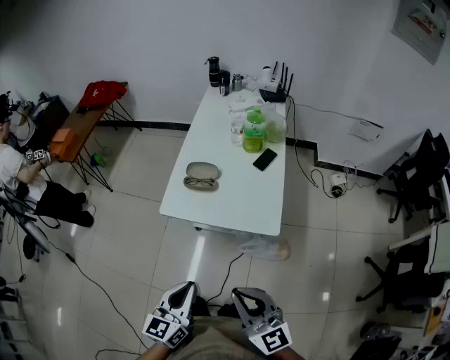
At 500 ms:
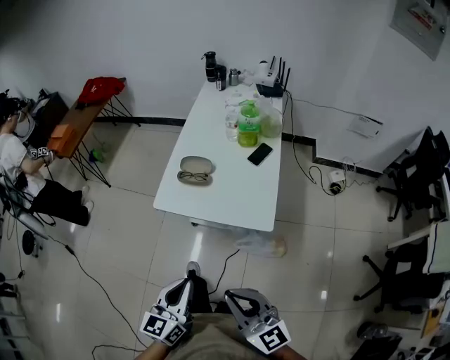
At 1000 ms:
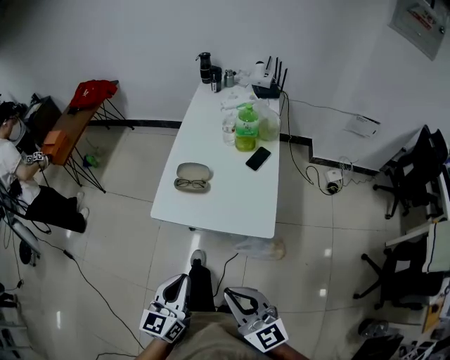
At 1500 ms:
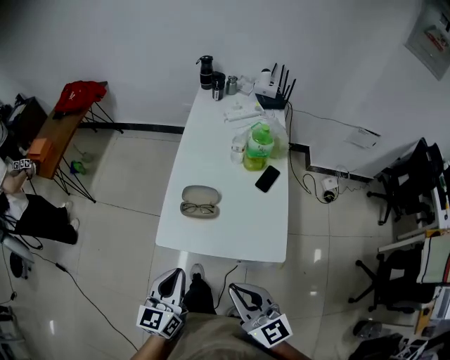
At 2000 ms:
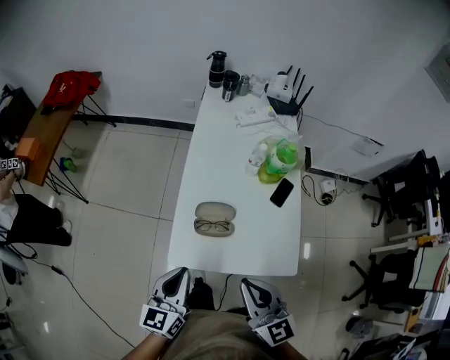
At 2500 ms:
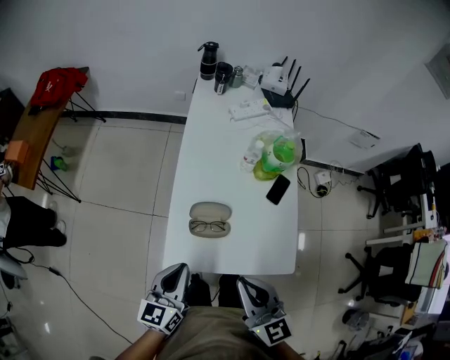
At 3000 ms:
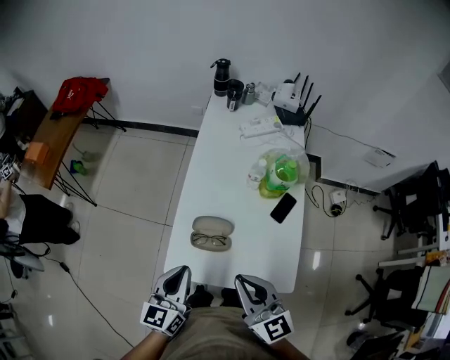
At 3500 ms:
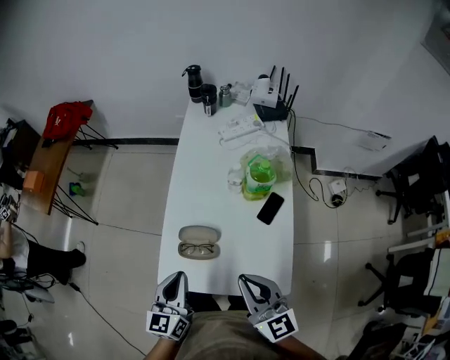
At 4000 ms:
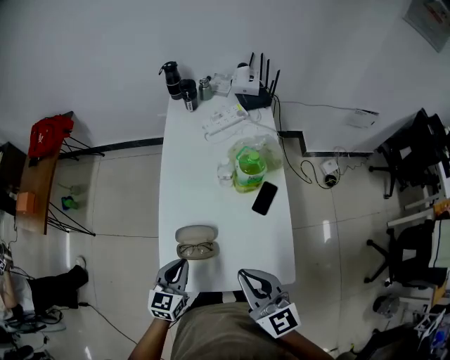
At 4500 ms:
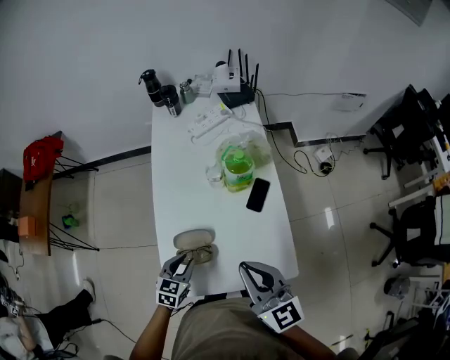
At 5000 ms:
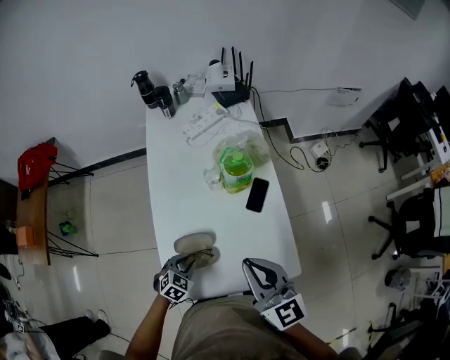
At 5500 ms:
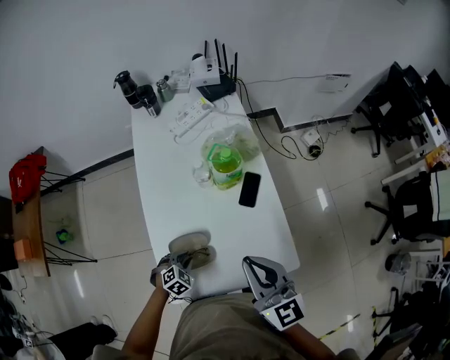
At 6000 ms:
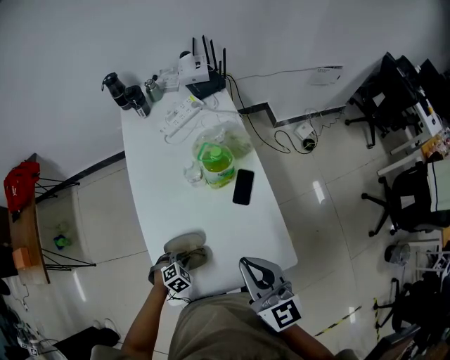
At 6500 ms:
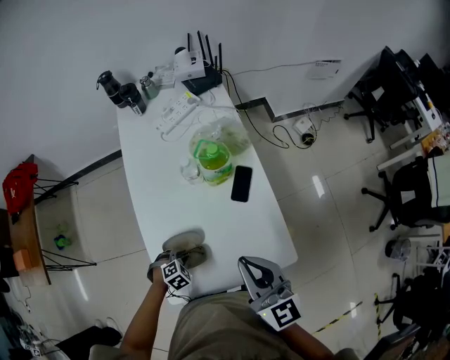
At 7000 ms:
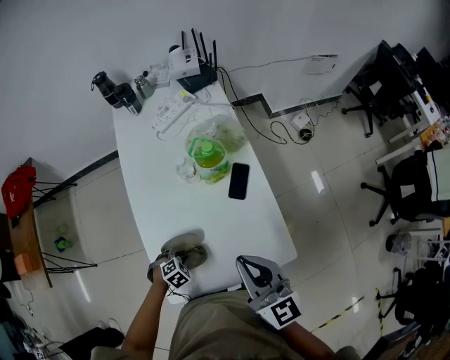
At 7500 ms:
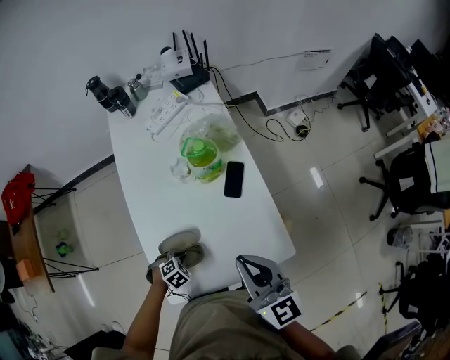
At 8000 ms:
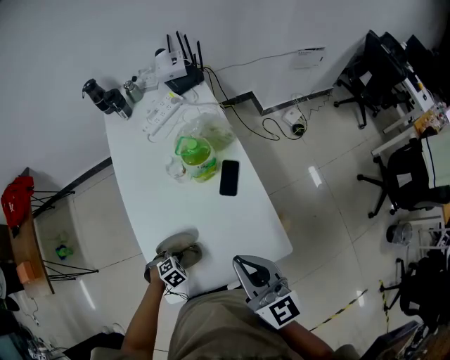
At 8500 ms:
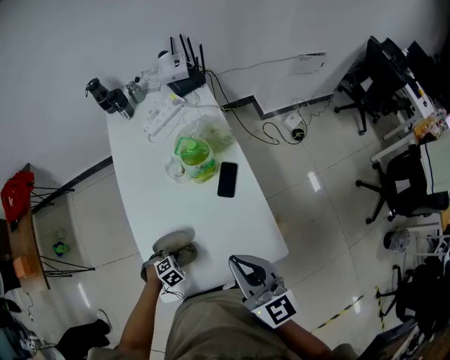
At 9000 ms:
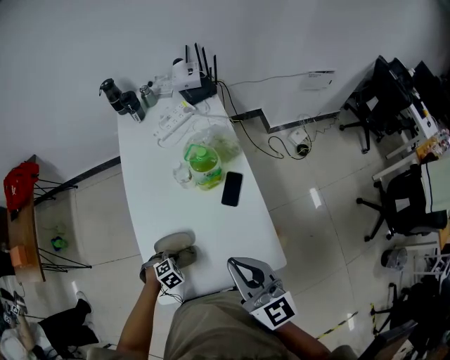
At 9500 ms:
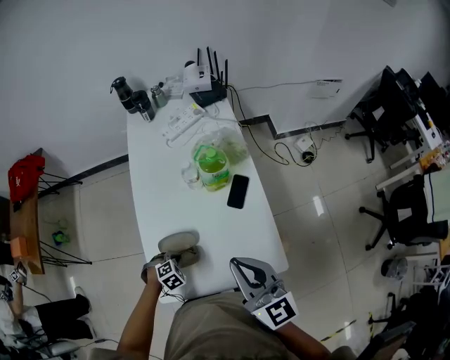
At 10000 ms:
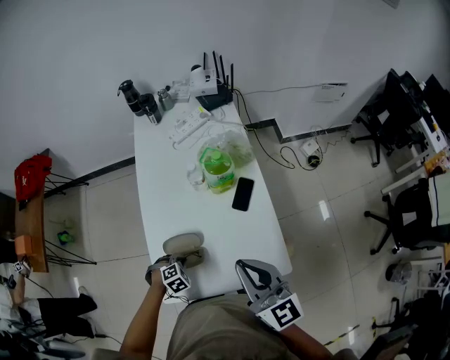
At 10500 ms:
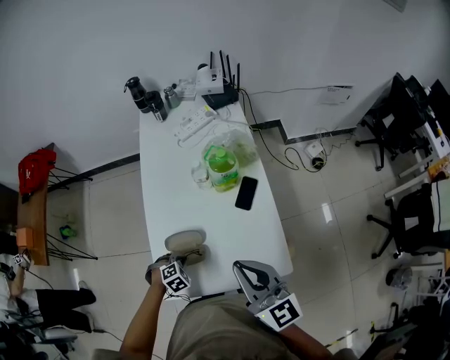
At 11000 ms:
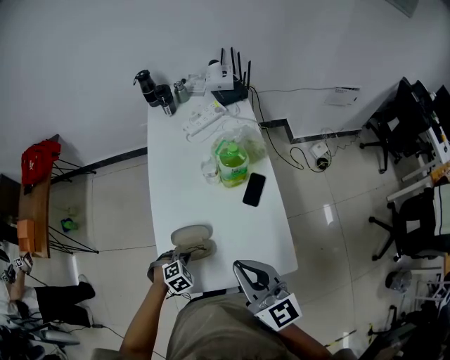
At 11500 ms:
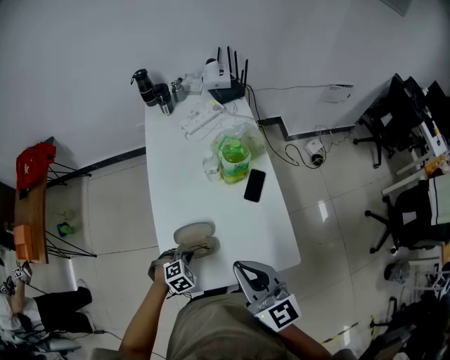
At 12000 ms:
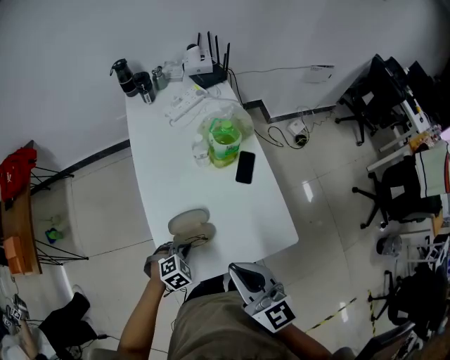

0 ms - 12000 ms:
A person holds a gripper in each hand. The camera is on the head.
0 ms - 2000 ms: Both grippers move forward, about 35 cm.
2000 ms - 4000 ms: The left gripper is displaced forward, to the right and downward by approximately 15 cm, and turns by about 20 degrees, while the right gripper travels to the right and forward by some 15 cm.
4000 ms - 6000 ms: The right gripper shifts by roughly 5 cm, while the left gripper shifts roughly 20 cm downward, angles its fingers downward, by about 50 degrees, and opens up.
6000 ms - 10000 ms: The grippers stay close to where they were, moving slightly.
10000 ms - 12000 ms: The right gripper shifts by some 10 cm, while the left gripper travels upward by some 5 cm.

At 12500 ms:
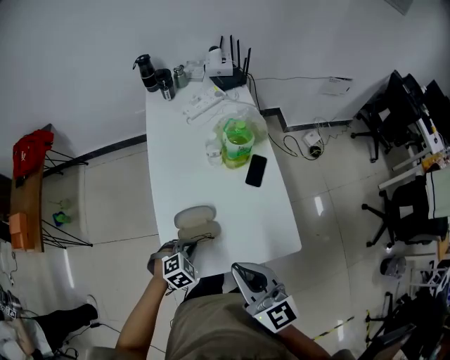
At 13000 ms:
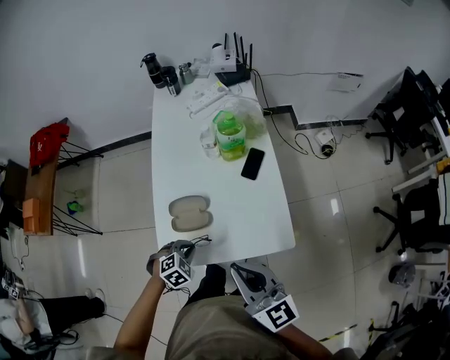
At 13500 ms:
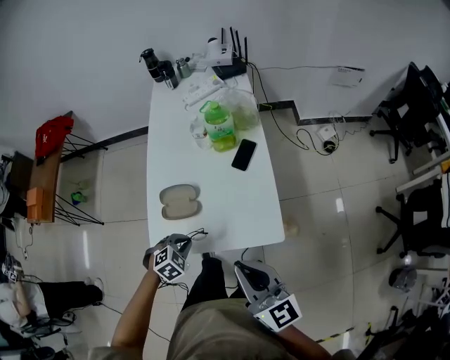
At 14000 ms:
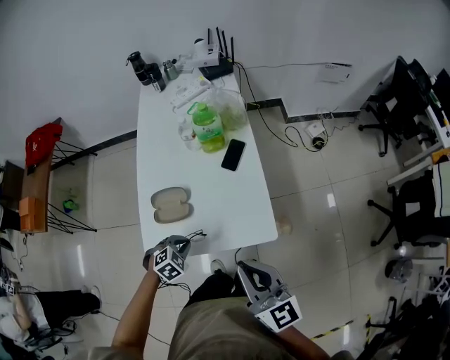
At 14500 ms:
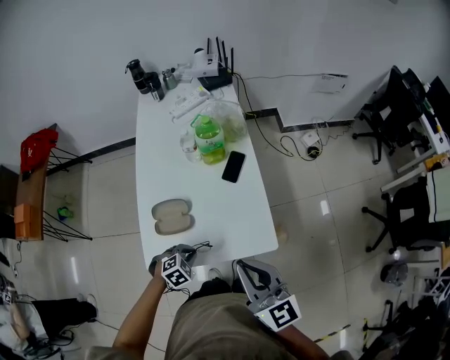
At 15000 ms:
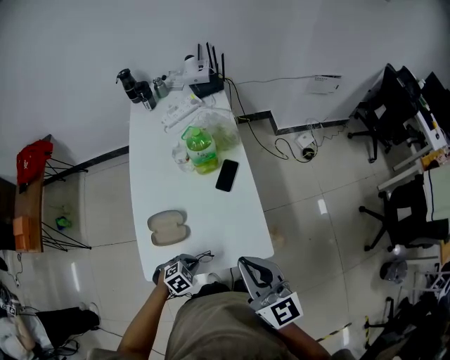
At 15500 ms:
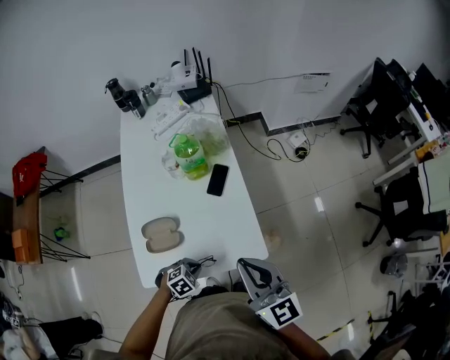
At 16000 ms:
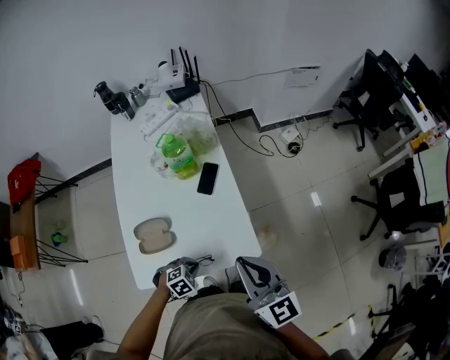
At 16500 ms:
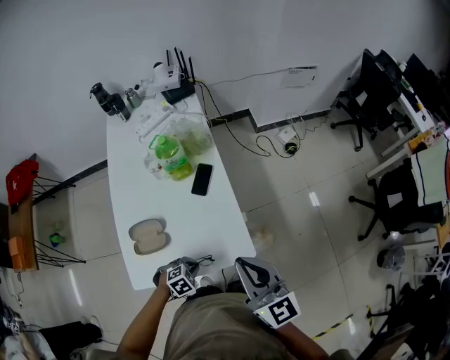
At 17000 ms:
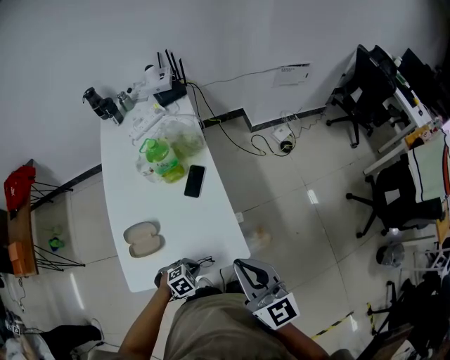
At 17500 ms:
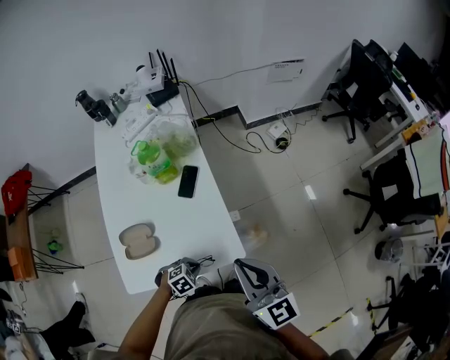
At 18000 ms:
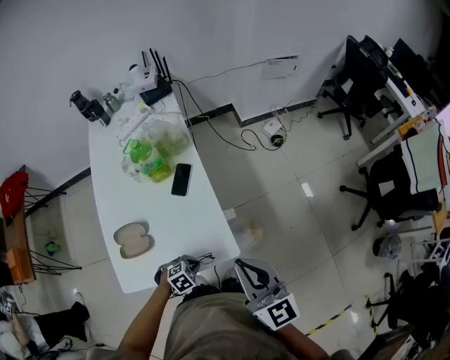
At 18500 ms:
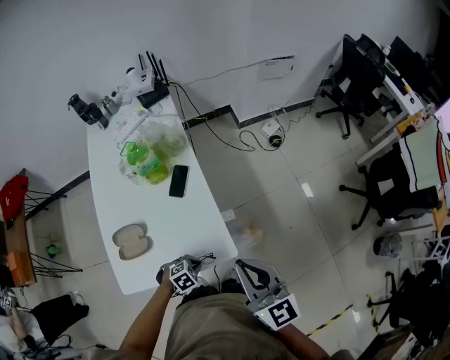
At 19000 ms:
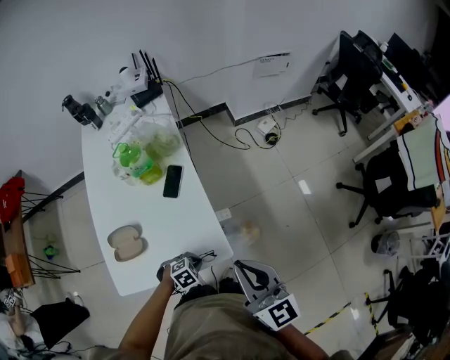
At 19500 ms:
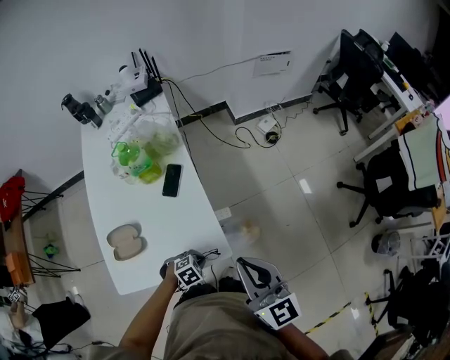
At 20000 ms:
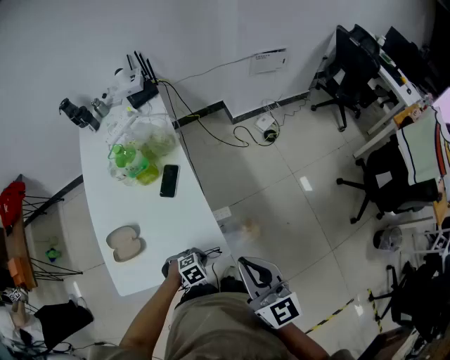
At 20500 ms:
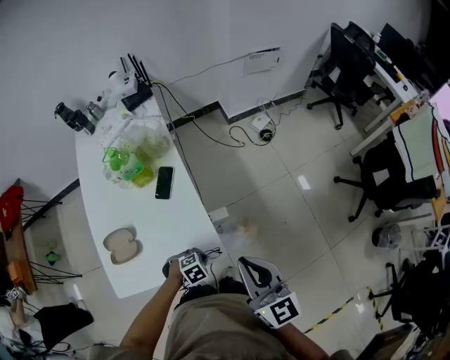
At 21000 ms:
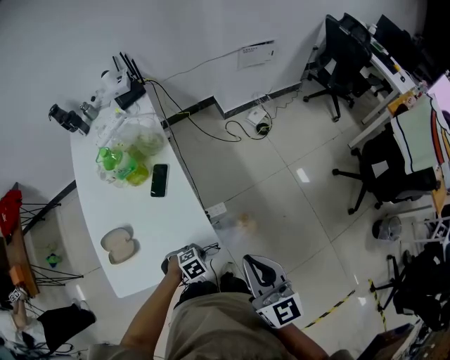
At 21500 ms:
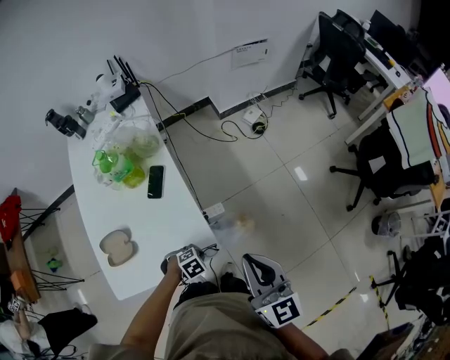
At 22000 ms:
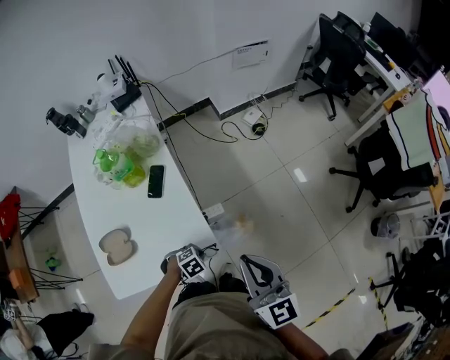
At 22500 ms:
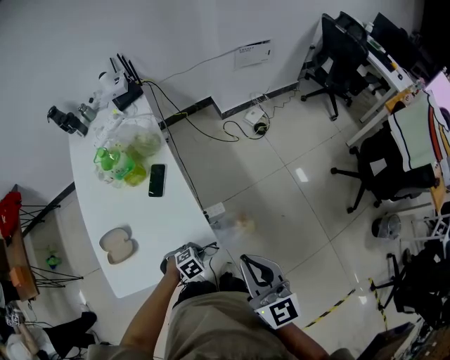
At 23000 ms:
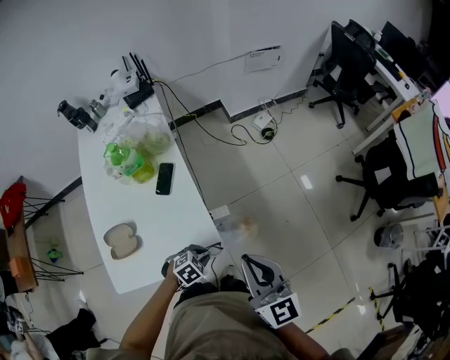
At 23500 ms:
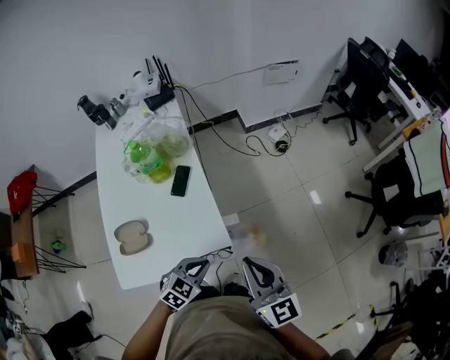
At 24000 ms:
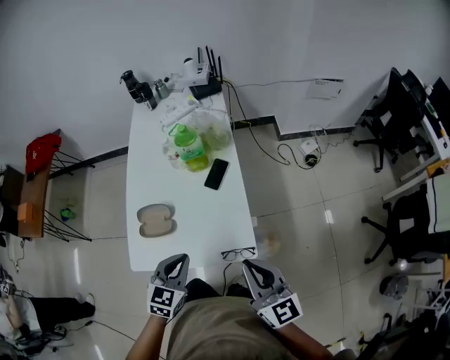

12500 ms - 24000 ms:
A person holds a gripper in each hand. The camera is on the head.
12500 ms - 14500 ms: The left gripper goes roughly 15 cm to the right and backward. Meanwhile the right gripper moves to the right, roughly 15 cm.
14500 ms - 16500 ms: The left gripper travels to the right by approximately 10 cm; the right gripper moves to the right and forward, approximately 10 cm.
16500 ms - 18500 ms: Both grippers move to the right, approximately 10 cm.
18500 ms - 20000 ms: The left gripper shifts by about 5 cm.
20000 ms - 22000 ms: The grippers move only a little.
22000 ms - 24000 ms: The left gripper moves upward, about 25 cm, and points its fingers some 40 degrees further upward. Meanwhile the right gripper shifts by roughly 10 cm, and changes its angle by some 20 degrees.

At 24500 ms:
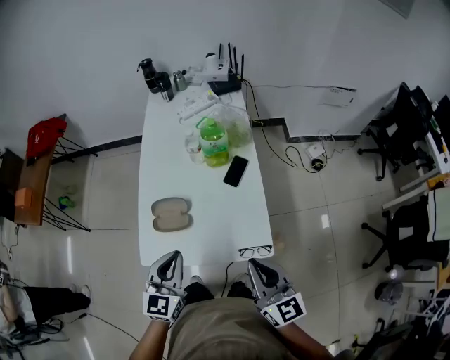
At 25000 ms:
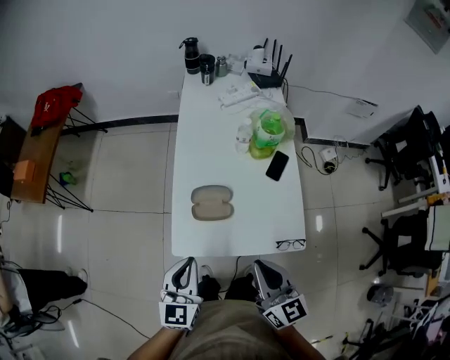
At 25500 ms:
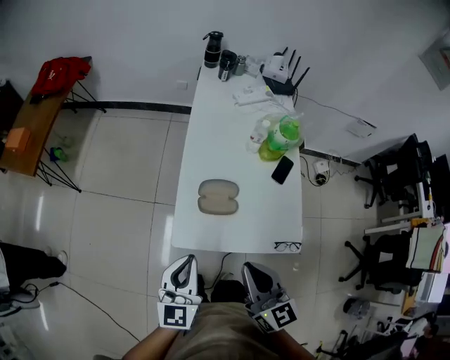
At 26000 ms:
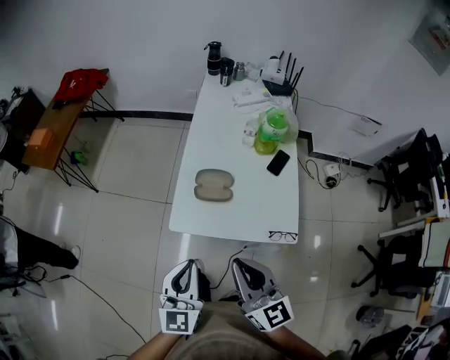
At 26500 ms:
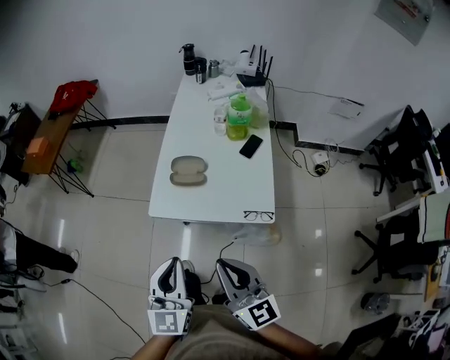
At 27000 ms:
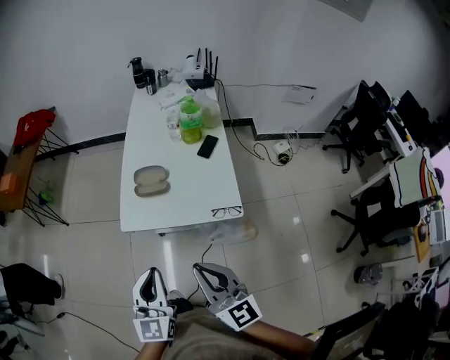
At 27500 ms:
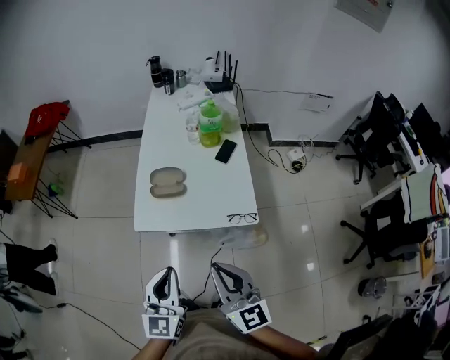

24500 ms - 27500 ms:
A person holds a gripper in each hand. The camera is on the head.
24500 ms - 26000 ms: The right gripper goes some 20 cm to the left. The left gripper moves to the left and backward, roughly 20 cm.
26000 ms - 27500 ms: Both grippers move backward and to the right, roughly 15 cm.
